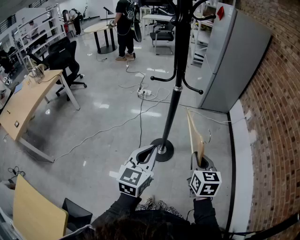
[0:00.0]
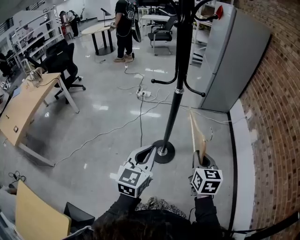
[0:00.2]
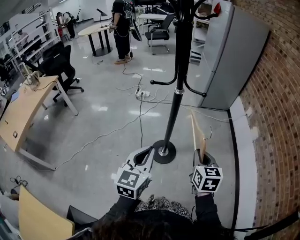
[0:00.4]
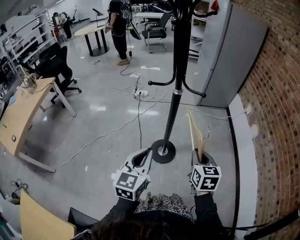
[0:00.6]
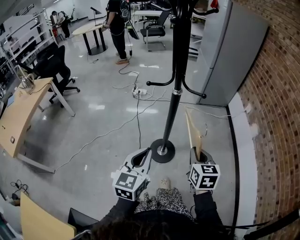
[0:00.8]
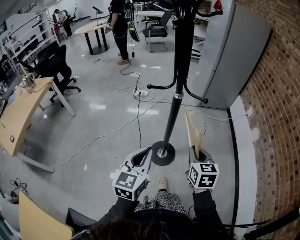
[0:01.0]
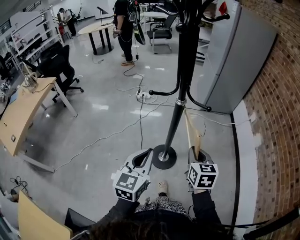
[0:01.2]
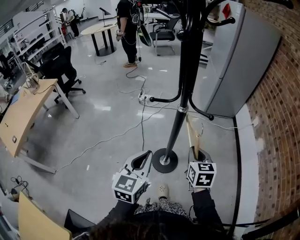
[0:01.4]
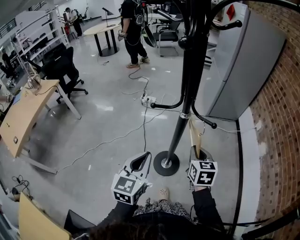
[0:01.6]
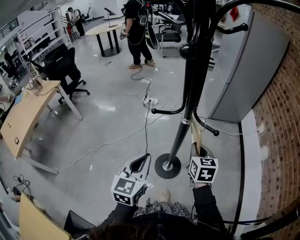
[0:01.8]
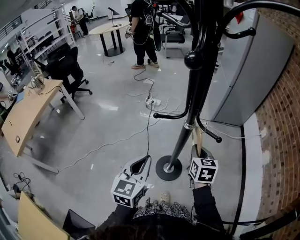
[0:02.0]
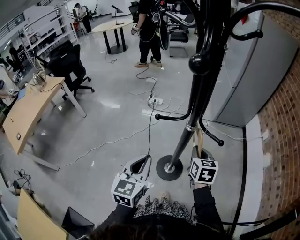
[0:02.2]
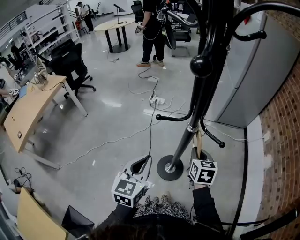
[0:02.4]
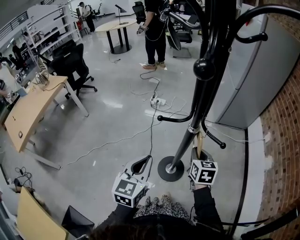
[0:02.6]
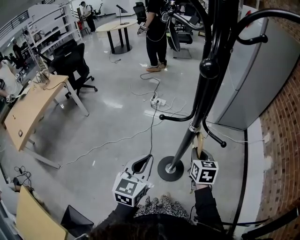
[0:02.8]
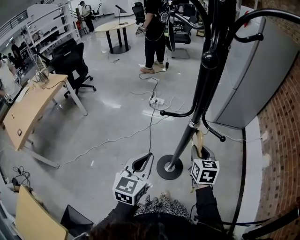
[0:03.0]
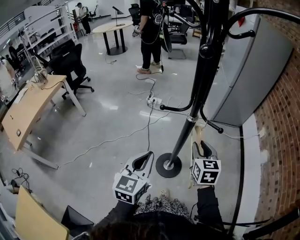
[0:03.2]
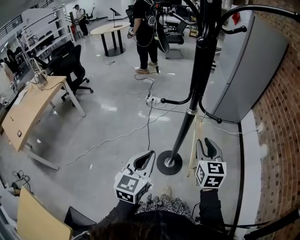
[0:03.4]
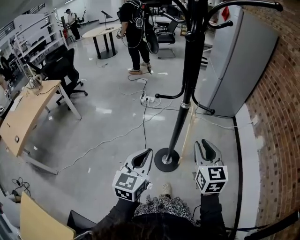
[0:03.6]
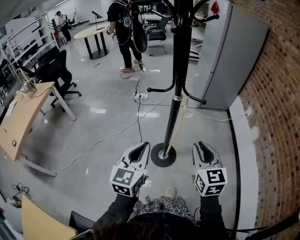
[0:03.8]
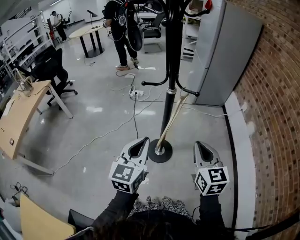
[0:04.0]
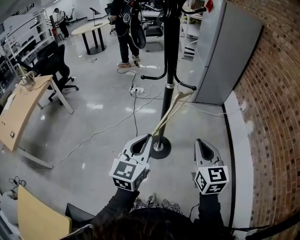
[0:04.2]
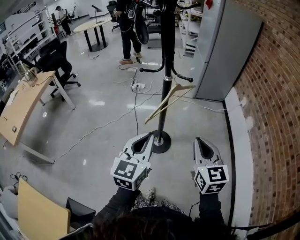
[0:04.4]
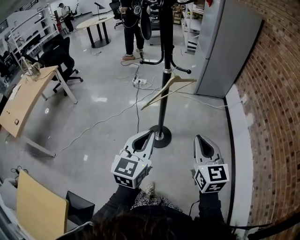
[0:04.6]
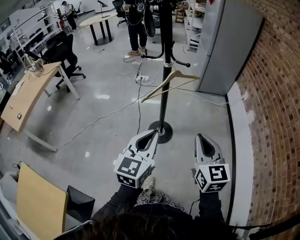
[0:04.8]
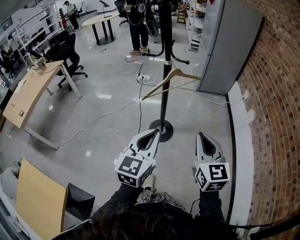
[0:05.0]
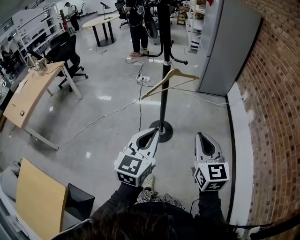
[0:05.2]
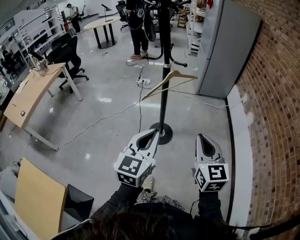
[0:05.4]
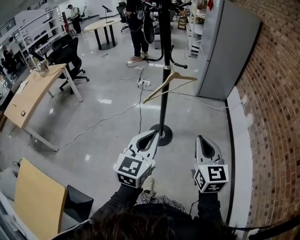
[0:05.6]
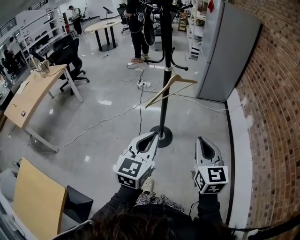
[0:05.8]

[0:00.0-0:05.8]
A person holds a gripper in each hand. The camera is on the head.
0:00.0 to 0:01.4: The left gripper is displaced forward and to the left by about 15 cm. The right gripper heads forward, covering roughly 15 cm.
0:01.4 to 0:02.8: The right gripper goes some 10 cm forward. Meanwhile the left gripper shifts roughly 5 cm forward.
0:02.8 to 0:04.4: The right gripper travels backward and upward by approximately 35 cm, and swivels some 20 degrees; the left gripper goes some 20 cm backward and to the right.
0:04.4 to 0:05.8: The right gripper moves backward, about 10 cm; the left gripper shifts some 15 cm backward and to the right.

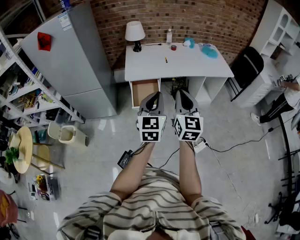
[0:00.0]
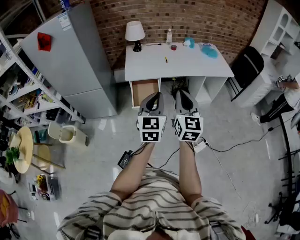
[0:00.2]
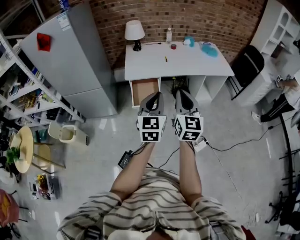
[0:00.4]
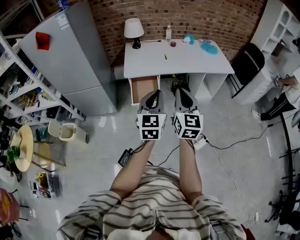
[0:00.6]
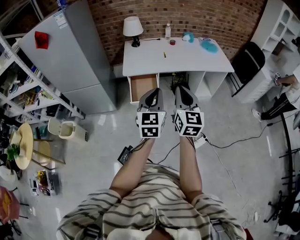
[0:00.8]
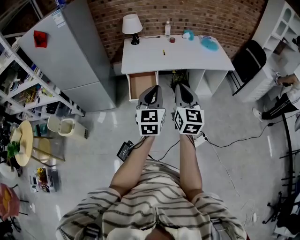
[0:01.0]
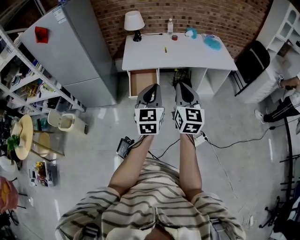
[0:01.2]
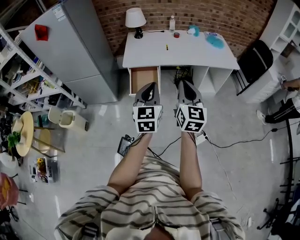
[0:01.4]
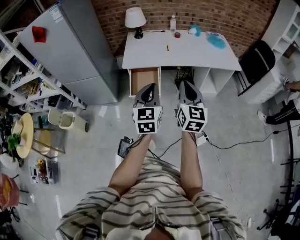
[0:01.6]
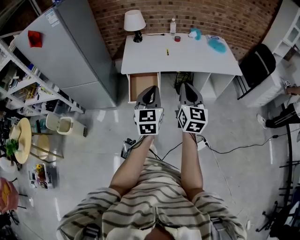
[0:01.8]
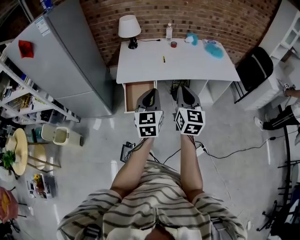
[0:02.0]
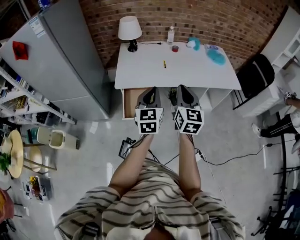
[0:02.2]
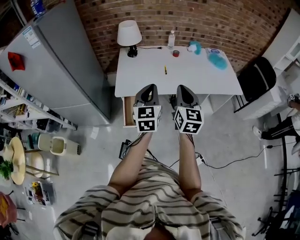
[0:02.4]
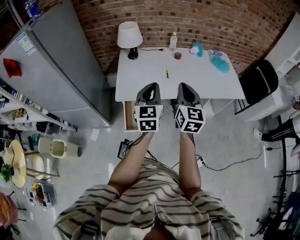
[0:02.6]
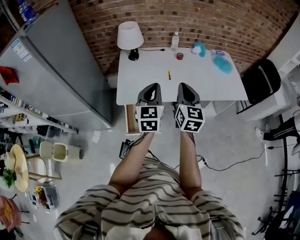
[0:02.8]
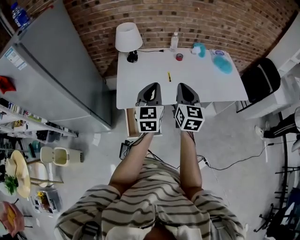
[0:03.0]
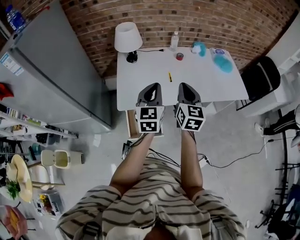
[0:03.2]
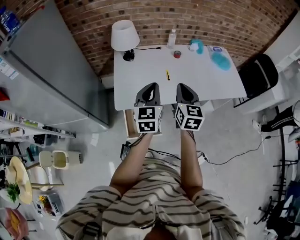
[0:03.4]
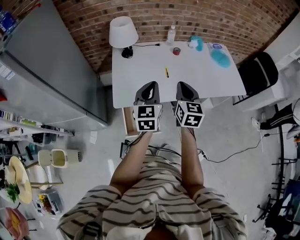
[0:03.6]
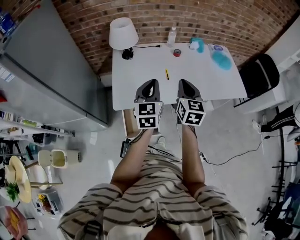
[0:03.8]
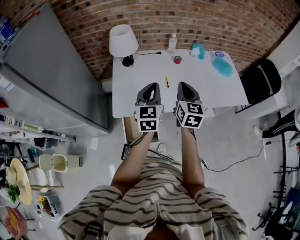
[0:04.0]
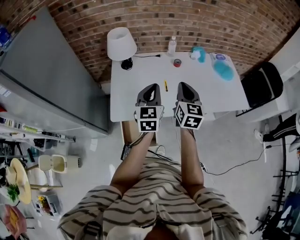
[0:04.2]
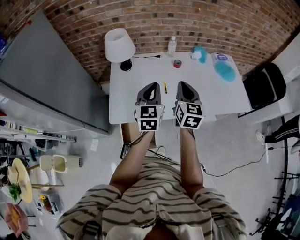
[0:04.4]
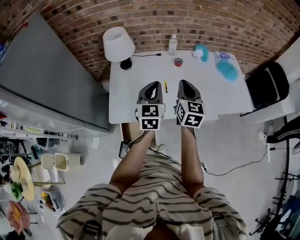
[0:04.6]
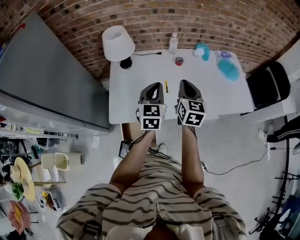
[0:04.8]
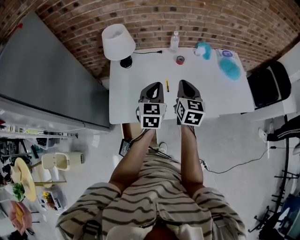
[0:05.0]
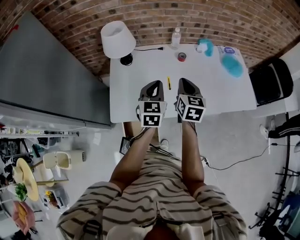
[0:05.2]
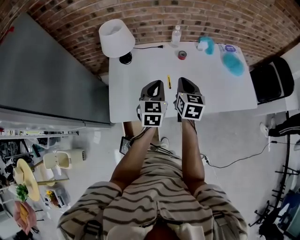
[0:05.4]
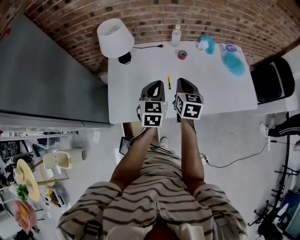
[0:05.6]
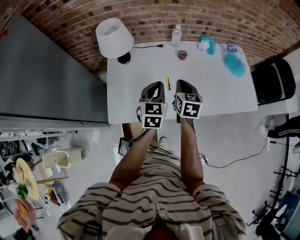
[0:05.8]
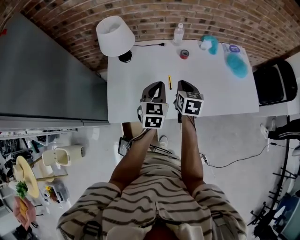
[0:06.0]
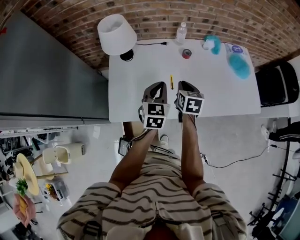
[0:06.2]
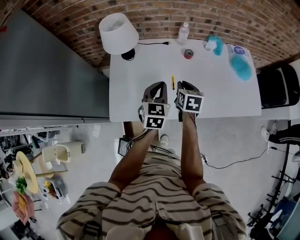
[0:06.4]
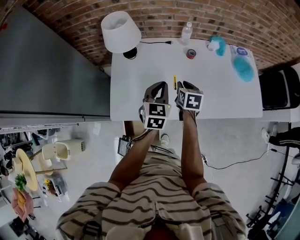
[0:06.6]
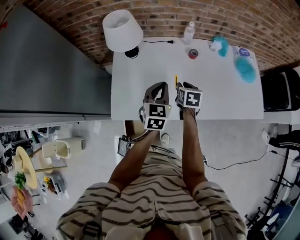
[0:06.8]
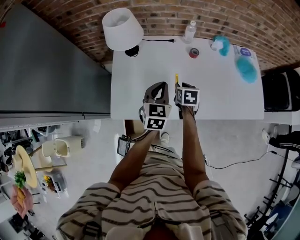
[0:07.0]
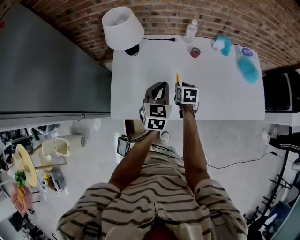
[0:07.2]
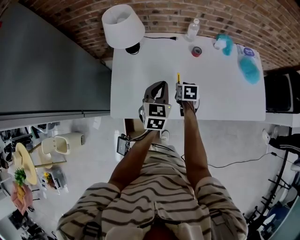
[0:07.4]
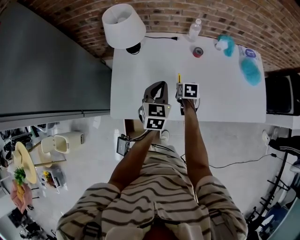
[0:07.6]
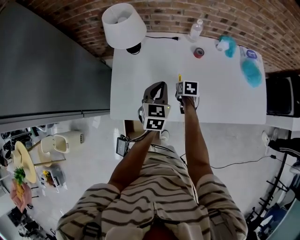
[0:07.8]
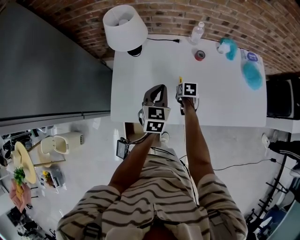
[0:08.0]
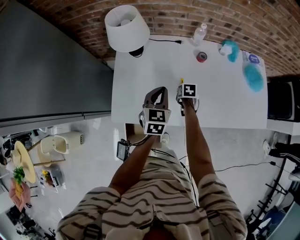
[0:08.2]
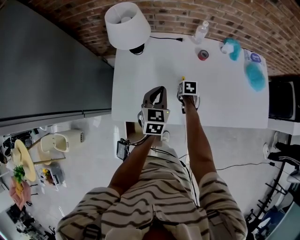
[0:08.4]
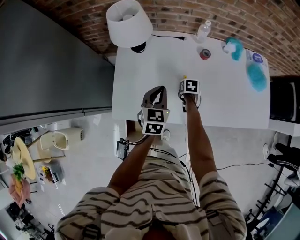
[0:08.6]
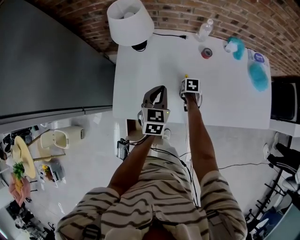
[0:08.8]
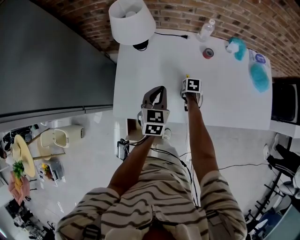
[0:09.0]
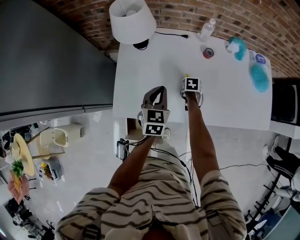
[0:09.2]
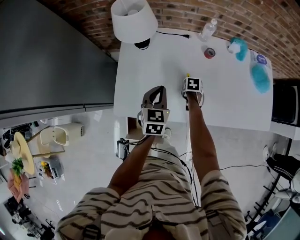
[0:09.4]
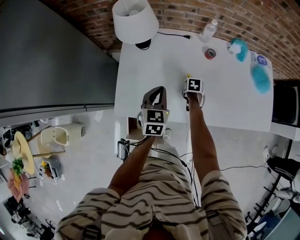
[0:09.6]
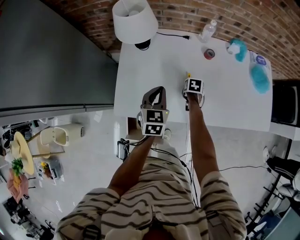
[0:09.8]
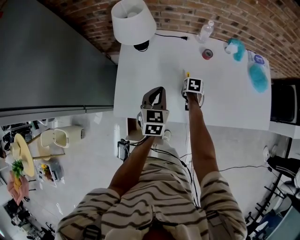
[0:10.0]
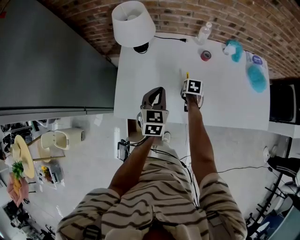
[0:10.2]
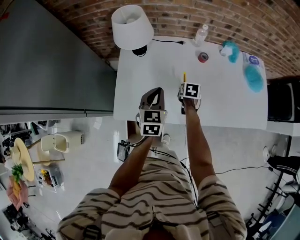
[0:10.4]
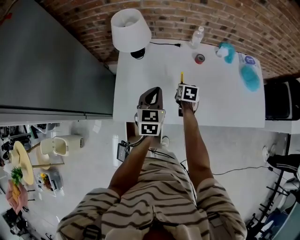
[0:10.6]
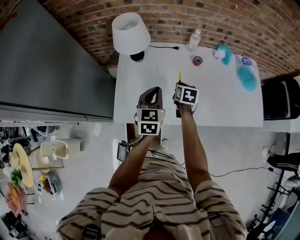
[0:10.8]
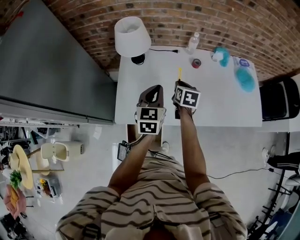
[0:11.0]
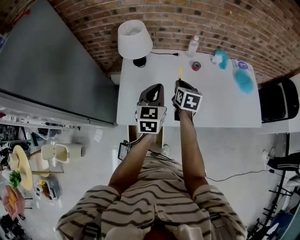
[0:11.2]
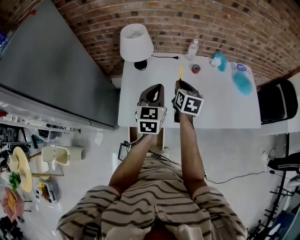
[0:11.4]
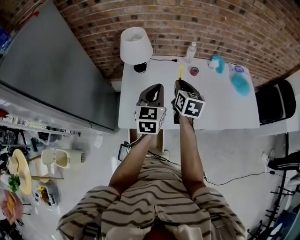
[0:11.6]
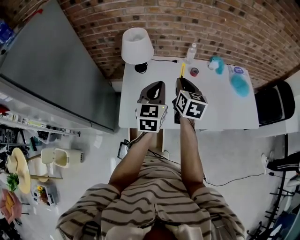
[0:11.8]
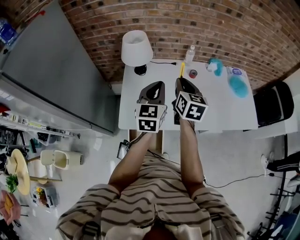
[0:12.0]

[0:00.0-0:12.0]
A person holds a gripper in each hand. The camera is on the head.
0:00.0 to 0:01.6: The left gripper goes some 5 cm to the right. The right gripper shifts approximately 10 cm to the right and forward.
0:01.6 to 0:03.0: Both grippers are carried forward, about 40 cm.
0:03.0 to 0:04.4: Both grippers move forward, about 15 cm.
0:04.4 to 0:06.0: Both grippers move downward and forward, approximately 15 cm. The right gripper turns by about 30 degrees.
0:06.0 to 0:07.6: The left gripper moves some 5 cm; the right gripper heads downward, covering some 15 cm, changes its angle by approximately 30 degrees, and opens up.
0:07.6 to 0:09.0: The left gripper changes place by some 5 cm; the right gripper shifts approximately 10 cm downward.
0:09.0 to 0:10.4: The right gripper is displaced upward by some 10 cm.
0:10.4 to 0:12.0: The left gripper moves upward, some 15 cm. The right gripper goes roughly 35 cm upward, and tips its fingers upward by roughly 40 degrees.

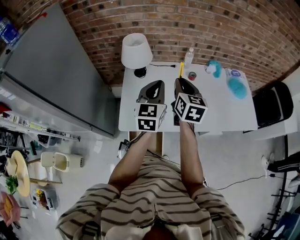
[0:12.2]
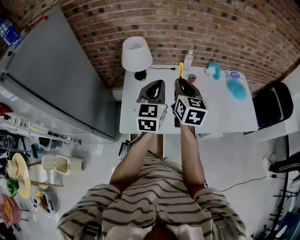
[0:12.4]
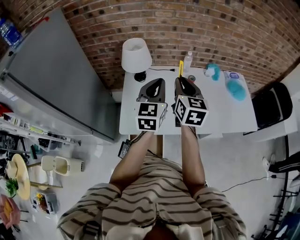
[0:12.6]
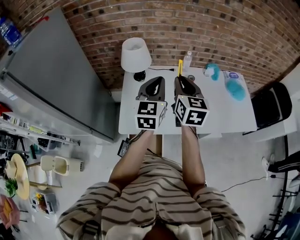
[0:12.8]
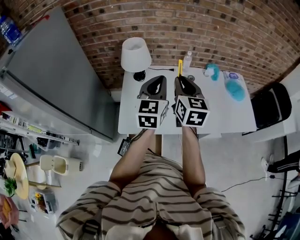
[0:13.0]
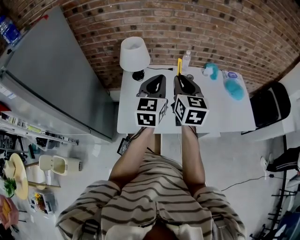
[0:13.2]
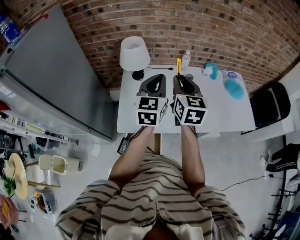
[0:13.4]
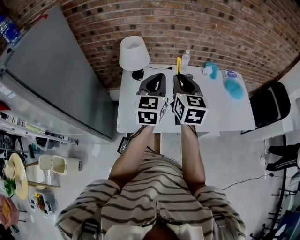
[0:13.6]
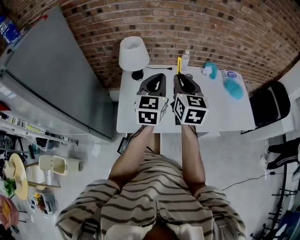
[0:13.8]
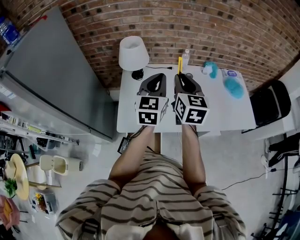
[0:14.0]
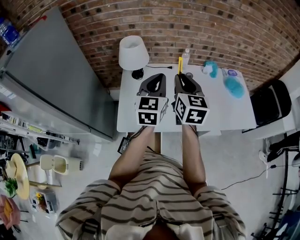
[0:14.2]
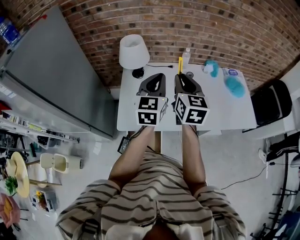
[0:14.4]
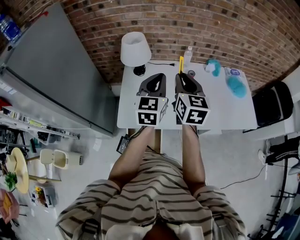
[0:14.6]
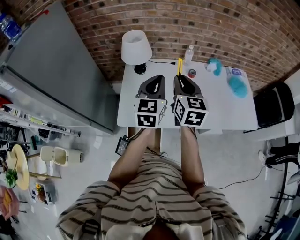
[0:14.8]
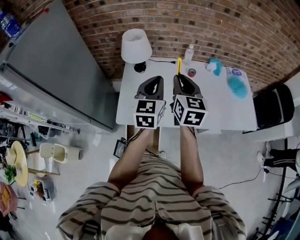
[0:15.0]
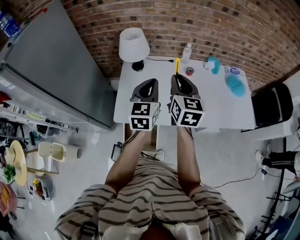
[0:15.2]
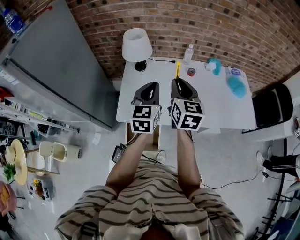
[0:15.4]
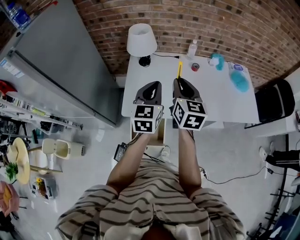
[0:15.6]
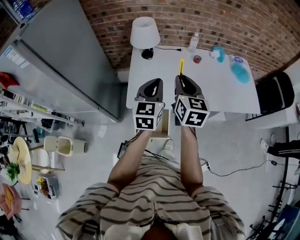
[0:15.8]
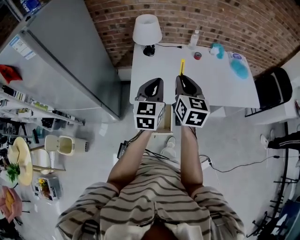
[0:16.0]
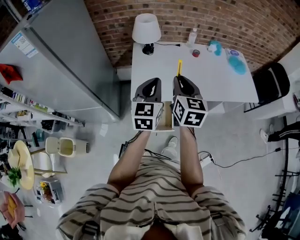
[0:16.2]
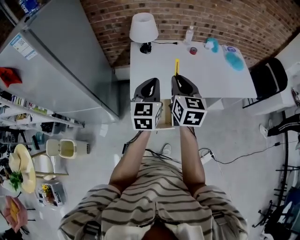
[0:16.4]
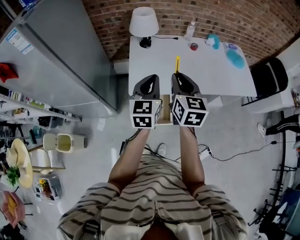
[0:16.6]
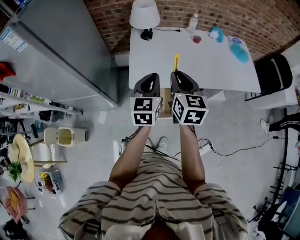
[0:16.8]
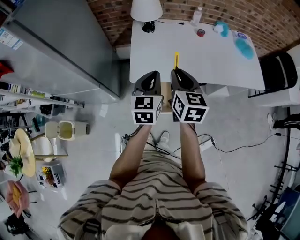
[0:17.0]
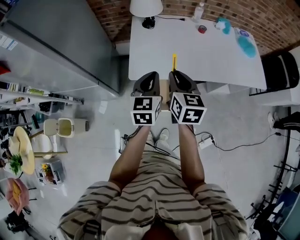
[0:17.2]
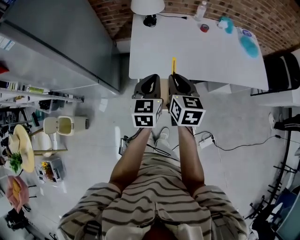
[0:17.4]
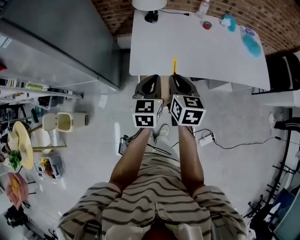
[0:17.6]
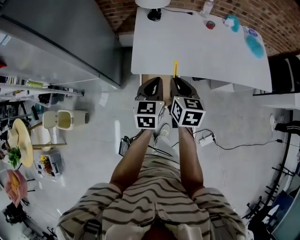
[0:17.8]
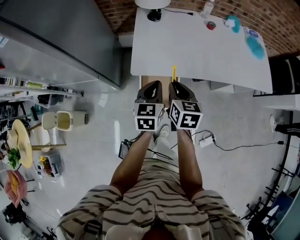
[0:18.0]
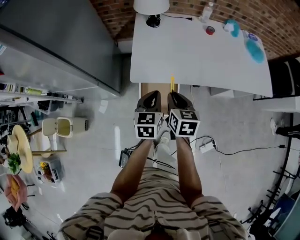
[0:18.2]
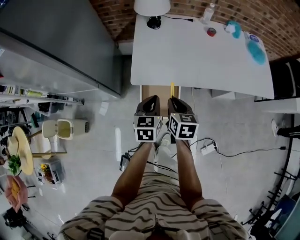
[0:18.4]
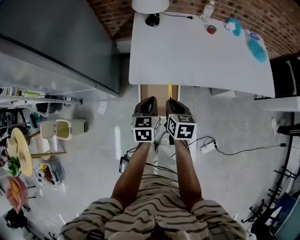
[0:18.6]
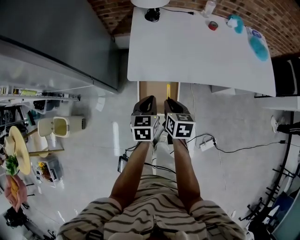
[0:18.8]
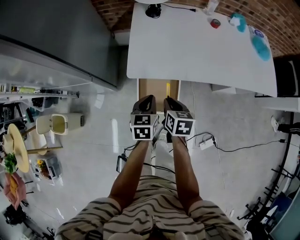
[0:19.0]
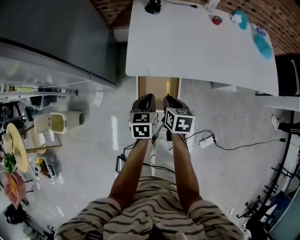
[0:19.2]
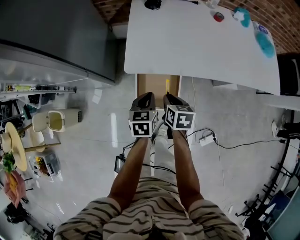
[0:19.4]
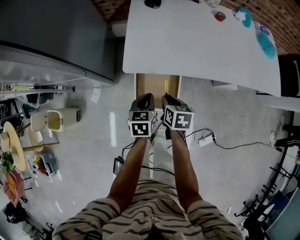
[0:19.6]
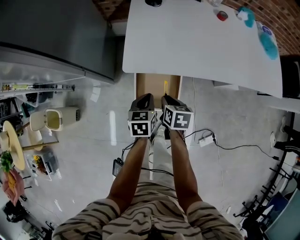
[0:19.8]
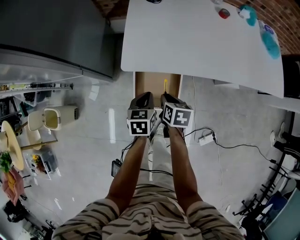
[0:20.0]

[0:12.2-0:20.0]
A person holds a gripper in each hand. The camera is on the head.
0:12.2 to 0:13.8: The right gripper heads upward, covering about 5 cm.
0:13.8 to 0:15.4: The left gripper heads backward, covering roughly 5 cm.
0:15.4 to 0:16.8: The grippers both shift backward and to the left by roughly 20 cm.
0:16.8 to 0:18.4: Both grippers move downward, about 20 cm. The right gripper turns by roughly 20 degrees.
0:18.4 to 0:20.0: The grippers both shift downward by about 15 cm.
